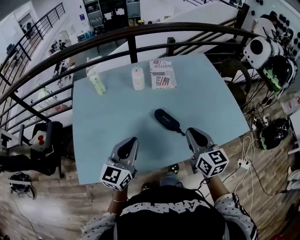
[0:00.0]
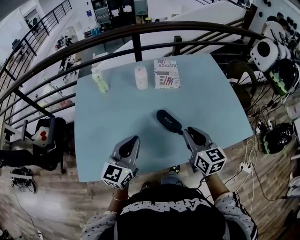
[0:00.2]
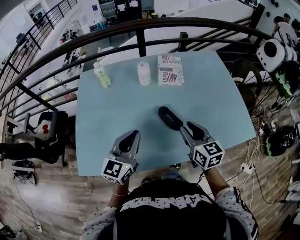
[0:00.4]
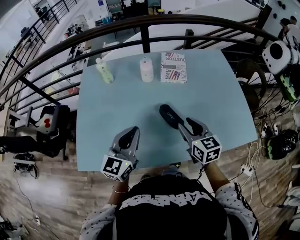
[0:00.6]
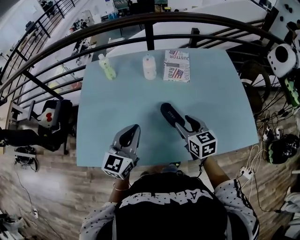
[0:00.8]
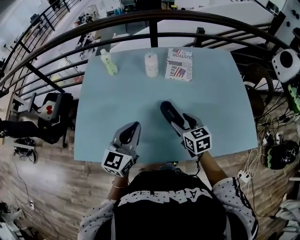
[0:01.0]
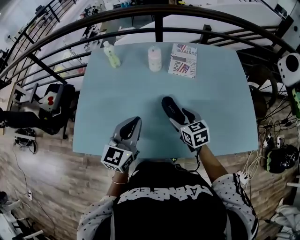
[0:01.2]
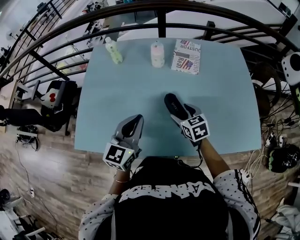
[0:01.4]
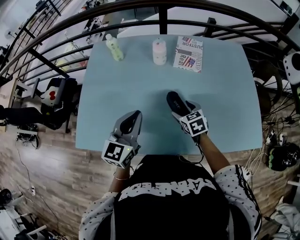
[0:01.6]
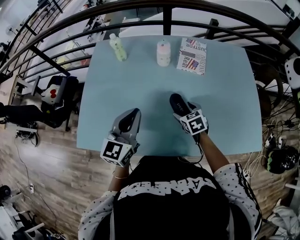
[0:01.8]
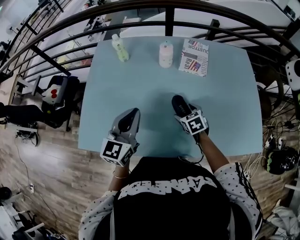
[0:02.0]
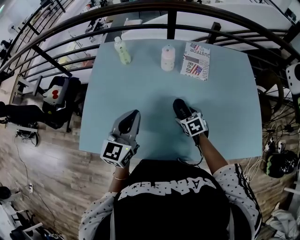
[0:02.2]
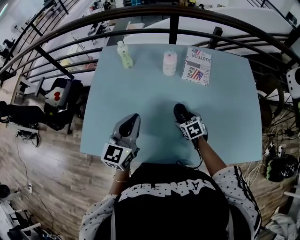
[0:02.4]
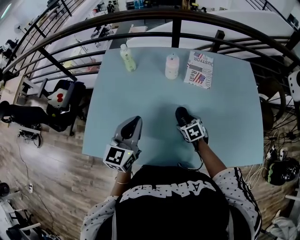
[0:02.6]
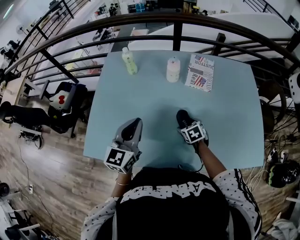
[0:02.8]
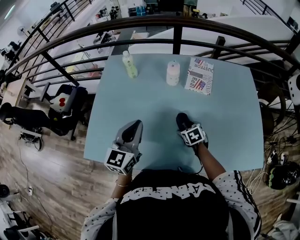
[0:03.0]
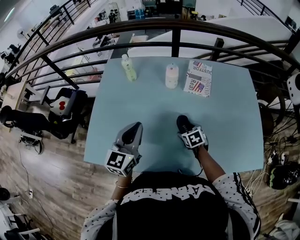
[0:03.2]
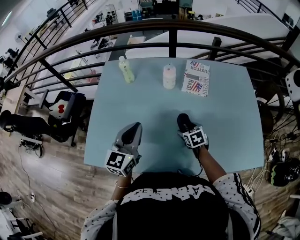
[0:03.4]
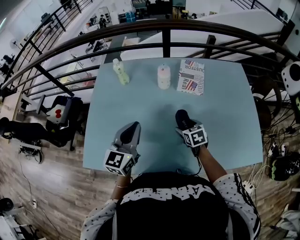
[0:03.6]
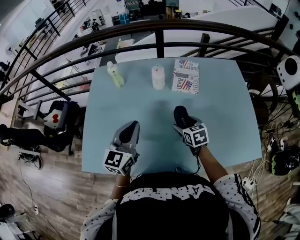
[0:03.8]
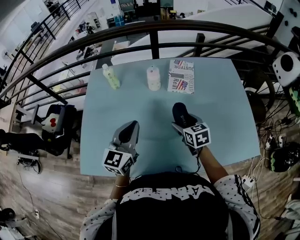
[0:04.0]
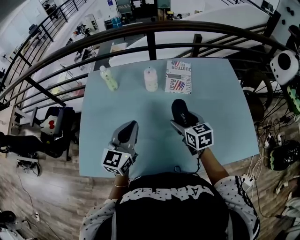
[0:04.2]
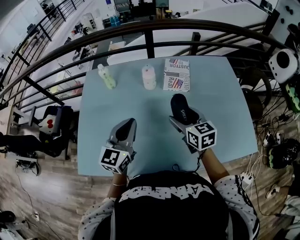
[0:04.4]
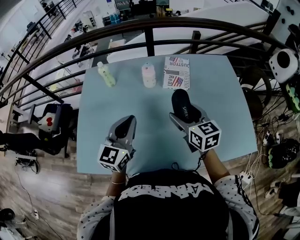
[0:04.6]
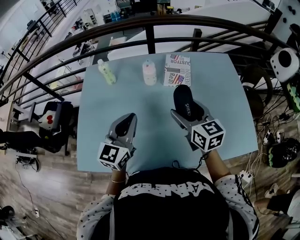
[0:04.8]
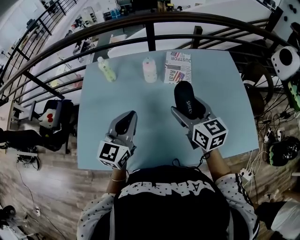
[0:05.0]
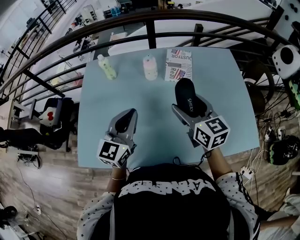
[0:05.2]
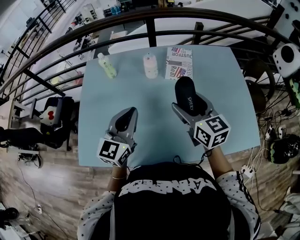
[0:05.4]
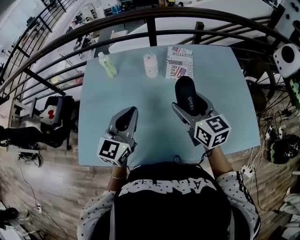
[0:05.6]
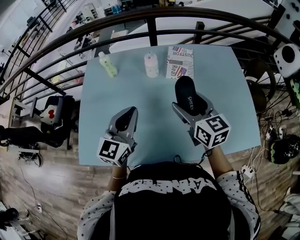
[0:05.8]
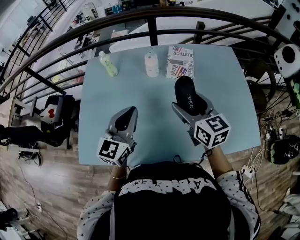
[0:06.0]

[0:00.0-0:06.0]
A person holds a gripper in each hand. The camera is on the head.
0:00.0 to 0:01.6: The right gripper moves downward and forward, approximately 25 cm, points its fingers roughly 30 degrees further downward, and opens. Meanwhile the left gripper travels forward by about 5 cm.
0:01.6 to 0:03.0: The left gripper shifts about 5 cm to the left. Meanwhile the right gripper heads downward, covering roughly 5 cm.
0:03.0 to 0:04.4: The right gripper moves upward, some 20 cm, and angles its fingers upward, by roughly 40 degrees. The left gripper heads to the right, covering approximately 5 cm.
0:04.4 to 0:06.0: The right gripper shifts some 5 cm upward.

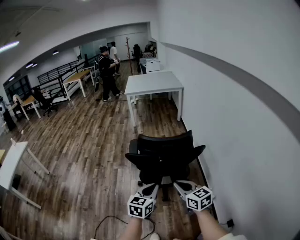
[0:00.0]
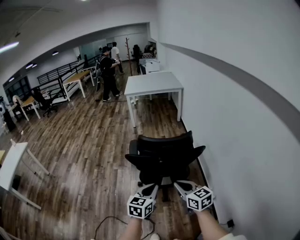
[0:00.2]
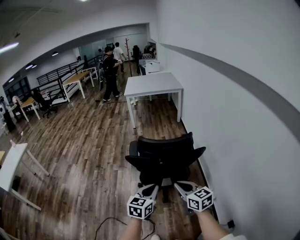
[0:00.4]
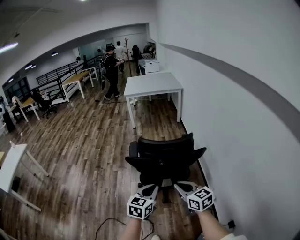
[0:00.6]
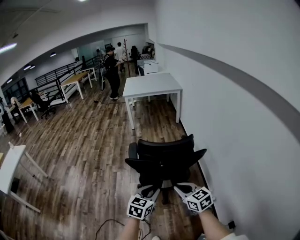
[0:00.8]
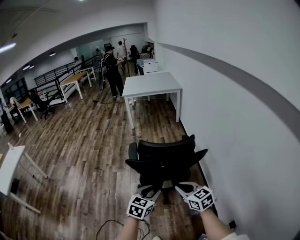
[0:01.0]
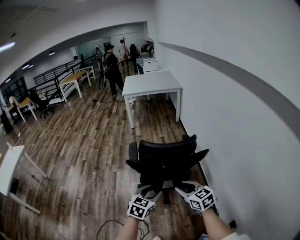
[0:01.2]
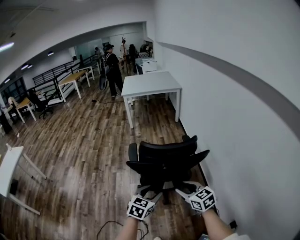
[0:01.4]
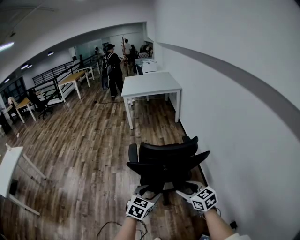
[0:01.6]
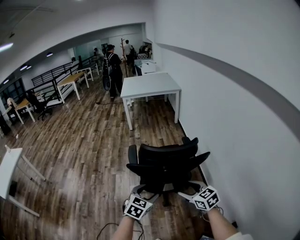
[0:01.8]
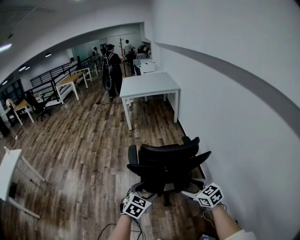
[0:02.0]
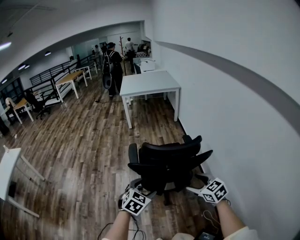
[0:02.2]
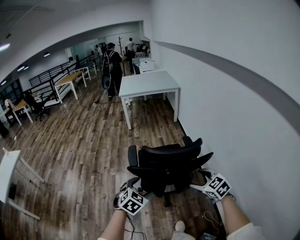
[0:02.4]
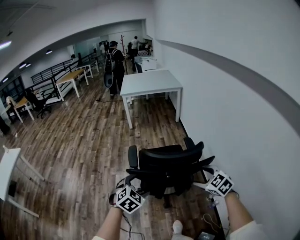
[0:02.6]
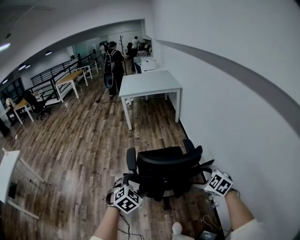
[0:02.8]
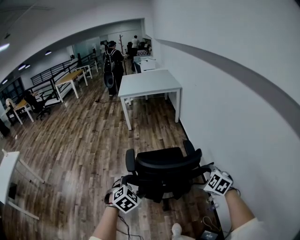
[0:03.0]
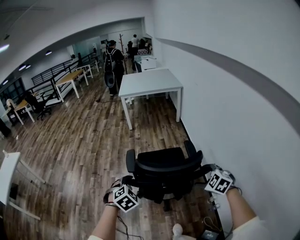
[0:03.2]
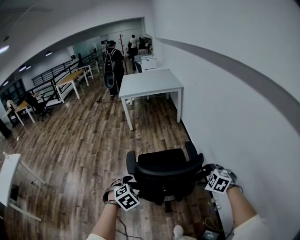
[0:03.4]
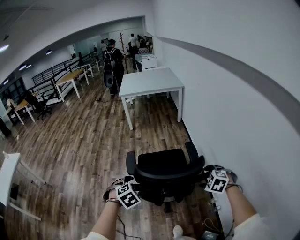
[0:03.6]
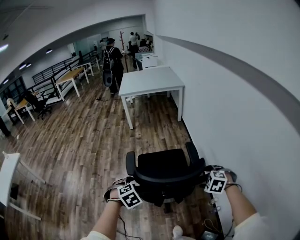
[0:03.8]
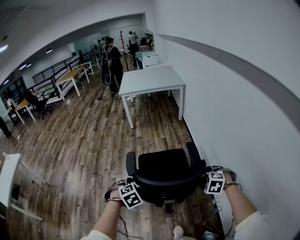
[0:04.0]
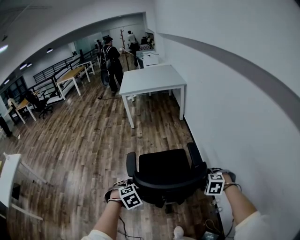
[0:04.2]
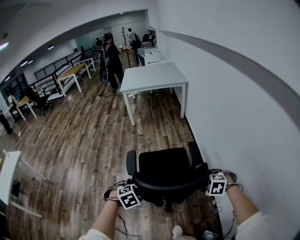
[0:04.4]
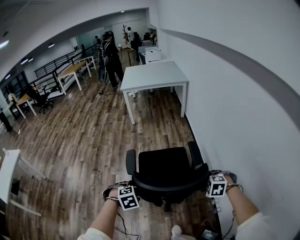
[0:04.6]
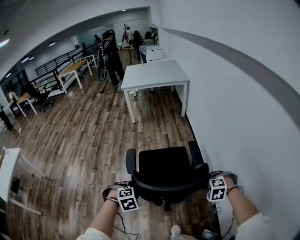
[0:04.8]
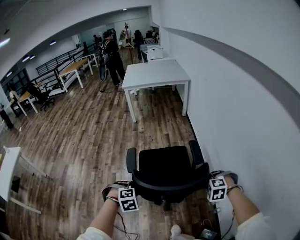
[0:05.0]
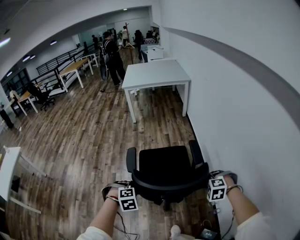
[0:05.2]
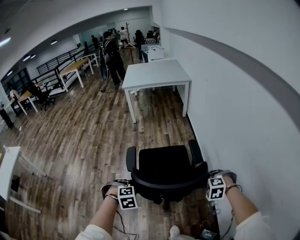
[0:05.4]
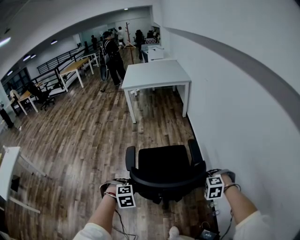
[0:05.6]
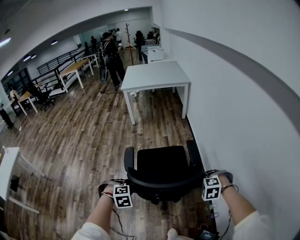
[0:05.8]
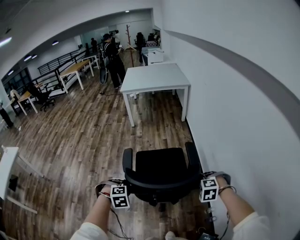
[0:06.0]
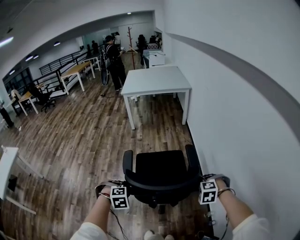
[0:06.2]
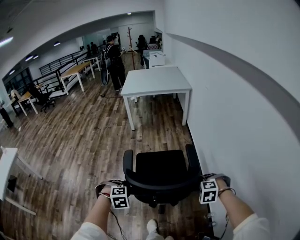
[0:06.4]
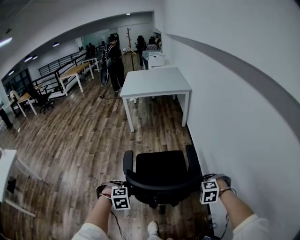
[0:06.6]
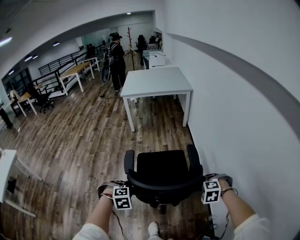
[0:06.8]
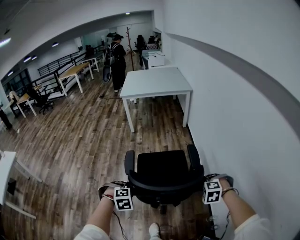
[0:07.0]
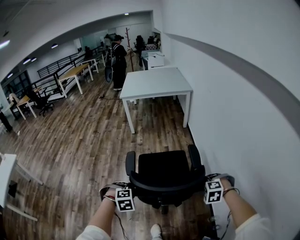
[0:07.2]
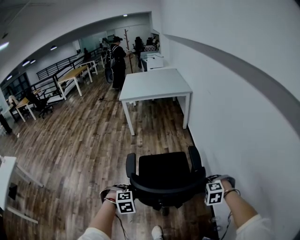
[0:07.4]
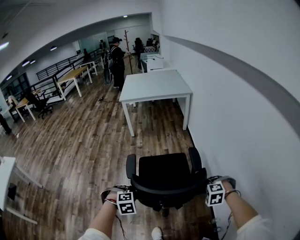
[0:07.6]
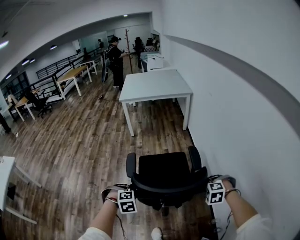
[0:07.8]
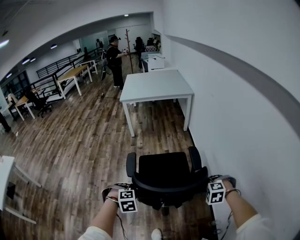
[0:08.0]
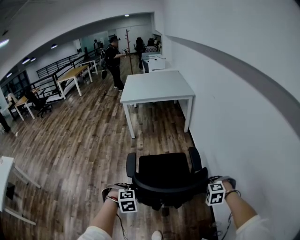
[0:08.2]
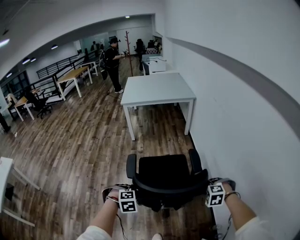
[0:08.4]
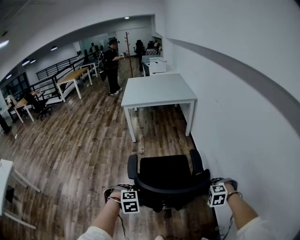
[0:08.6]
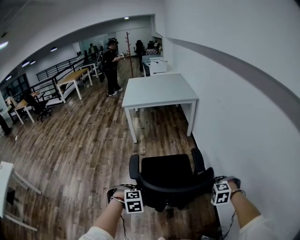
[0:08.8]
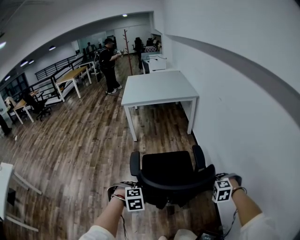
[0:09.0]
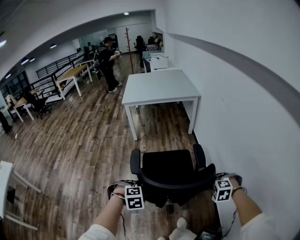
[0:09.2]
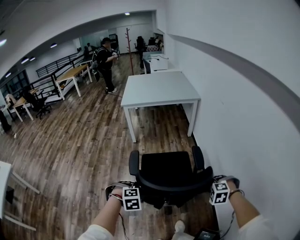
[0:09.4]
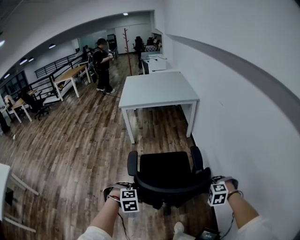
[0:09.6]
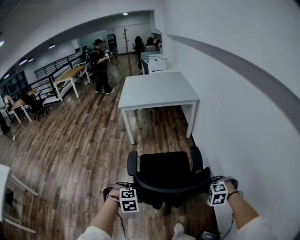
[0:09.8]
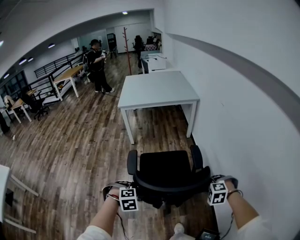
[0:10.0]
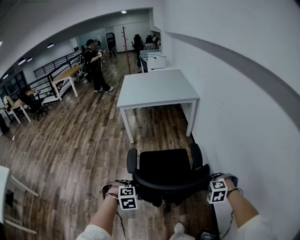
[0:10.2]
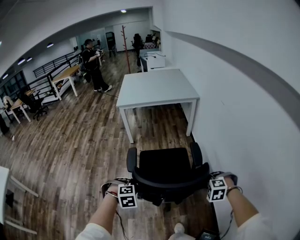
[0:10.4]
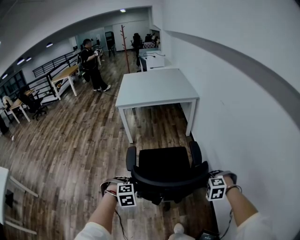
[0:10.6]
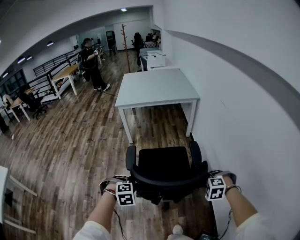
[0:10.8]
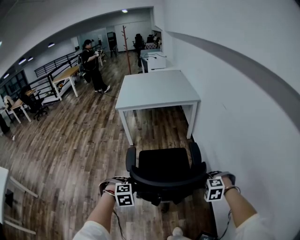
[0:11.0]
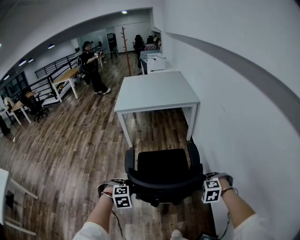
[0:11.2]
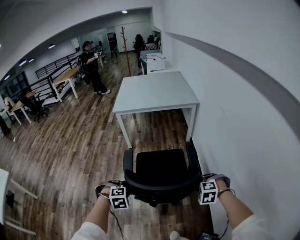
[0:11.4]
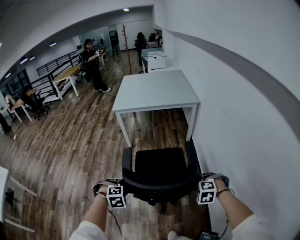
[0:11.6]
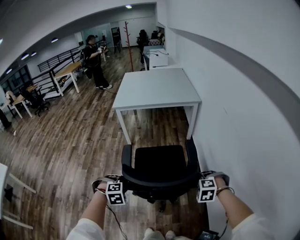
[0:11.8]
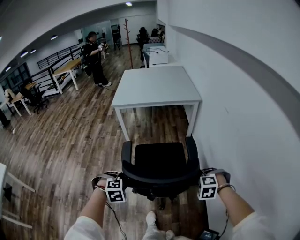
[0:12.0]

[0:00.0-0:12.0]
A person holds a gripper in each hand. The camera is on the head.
0:00.0 to 0:01.6: The right gripper opens up, while the left gripper changes place by some 5 cm, and opens its fingers.
0:01.6 to 0:03.0: The left gripper heads forward, covering roughly 10 cm, changes its angle by about 30 degrees, and opens its fingers; the right gripper shifts some 15 cm forward and to the right, and swivels approximately 40 degrees.
0:03.0 to 0:04.4: The right gripper heads downward and forward, covering approximately 10 cm, and turns by some 30 degrees. The left gripper is displaced downward by approximately 10 cm, and swivels about 20 degrees.
0:04.4 to 0:06.0: The grippers both shift forward by approximately 5 cm. The right gripper closes, while the left gripper closes.
0:06.0 to 0:07.6: The grippers both shift forward by approximately 10 cm.
0:07.6 to 0:09.0: The grippers both shift forward by about 15 cm.
0:09.0 to 0:10.4: The grippers both shift forward by roughly 10 cm.
0:10.4 to 0:12.0: The two grippers go roughly 15 cm forward.

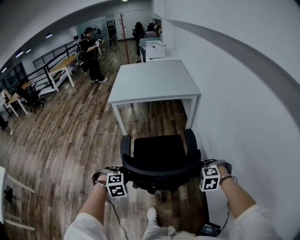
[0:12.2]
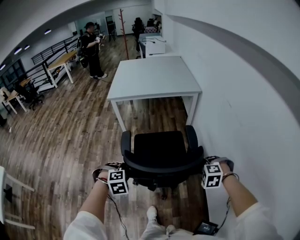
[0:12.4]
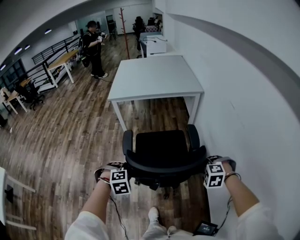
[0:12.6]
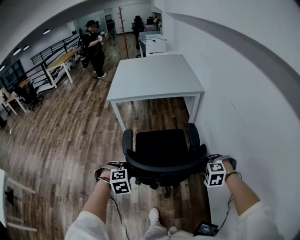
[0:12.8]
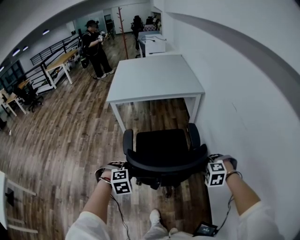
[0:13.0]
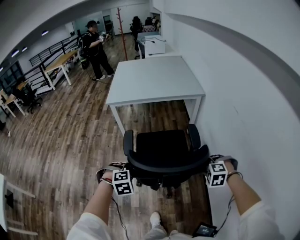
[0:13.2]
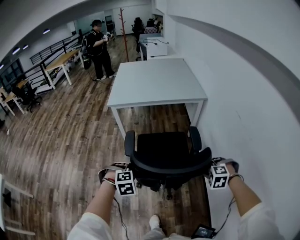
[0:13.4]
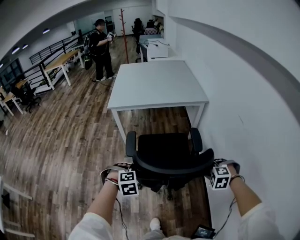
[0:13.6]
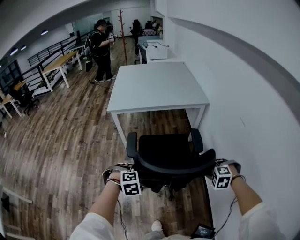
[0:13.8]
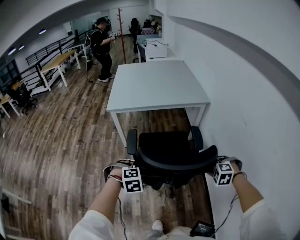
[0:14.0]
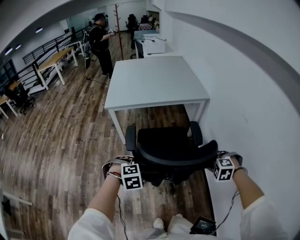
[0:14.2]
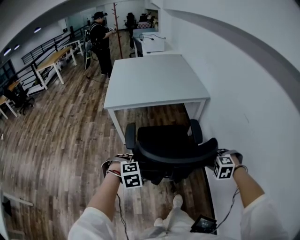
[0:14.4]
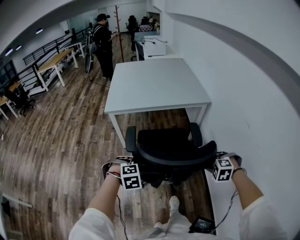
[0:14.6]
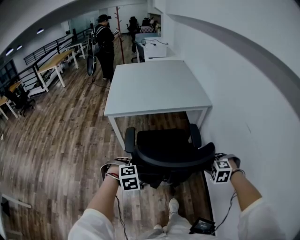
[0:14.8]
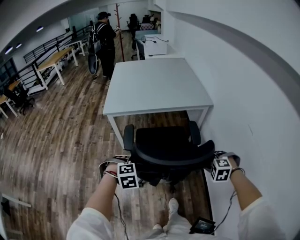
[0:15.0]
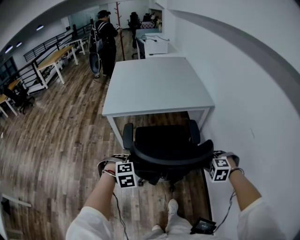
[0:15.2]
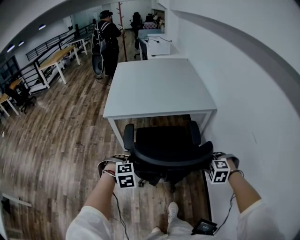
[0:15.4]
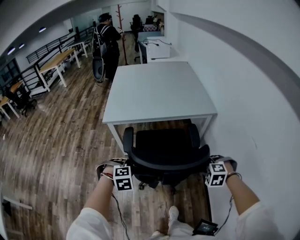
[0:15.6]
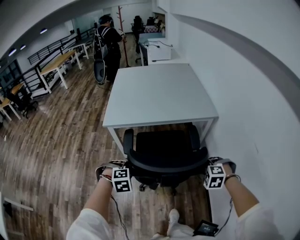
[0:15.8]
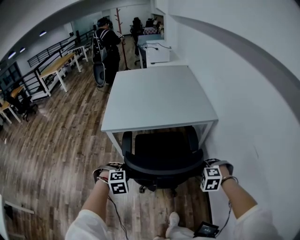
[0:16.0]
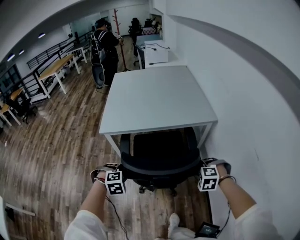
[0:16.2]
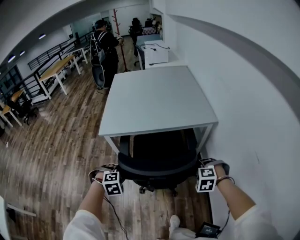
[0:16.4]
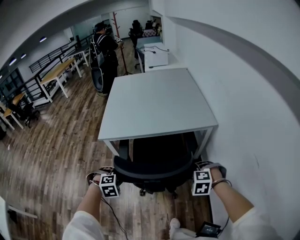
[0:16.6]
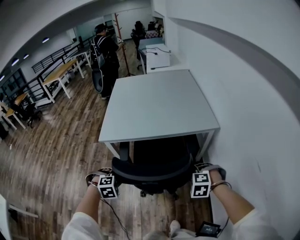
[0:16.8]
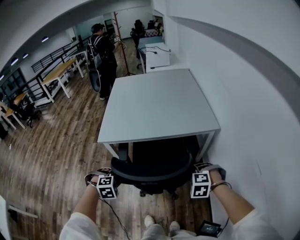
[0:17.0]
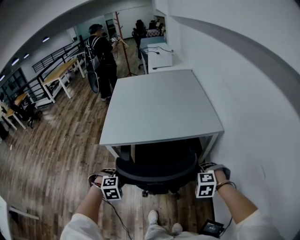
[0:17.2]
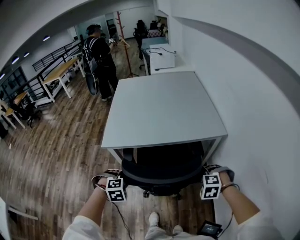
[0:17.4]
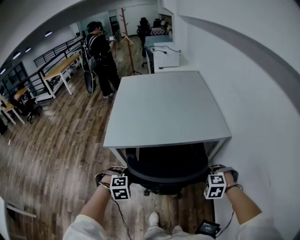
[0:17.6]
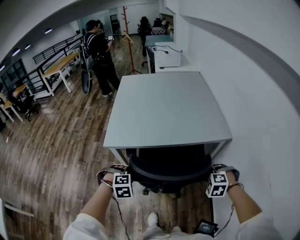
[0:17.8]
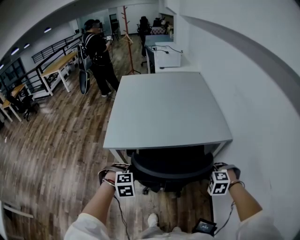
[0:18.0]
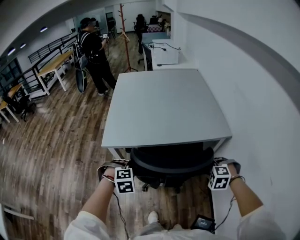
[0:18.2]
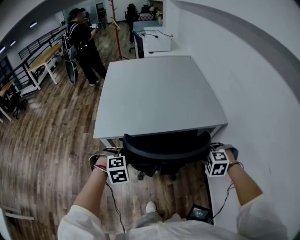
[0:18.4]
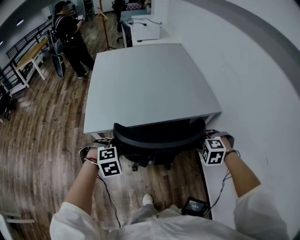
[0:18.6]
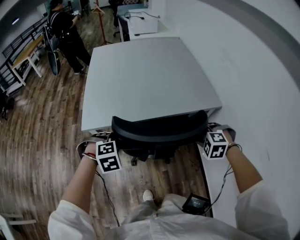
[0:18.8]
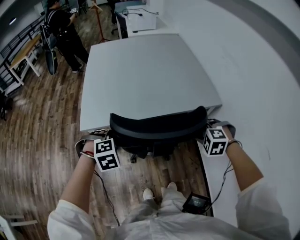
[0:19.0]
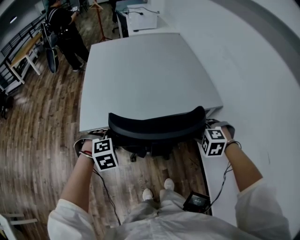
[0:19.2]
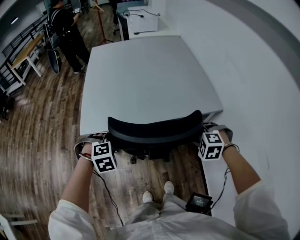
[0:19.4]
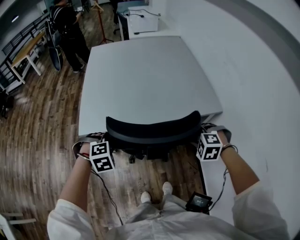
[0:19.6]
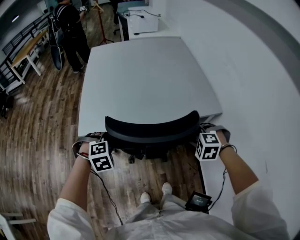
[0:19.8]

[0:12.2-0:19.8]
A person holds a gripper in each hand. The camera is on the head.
0:12.2 to 0:13.8: Both grippers travel together forward, roughly 15 cm.
0:13.8 to 0:15.2: The grippers both shift forward by roughly 15 cm.
0:15.2 to 0:16.8: The grippers both shift forward by roughly 15 cm.
0:16.8 to 0:18.2: The two grippers go some 15 cm forward.
0:18.2 to 0:19.8: The grippers both shift forward by roughly 10 cm.
